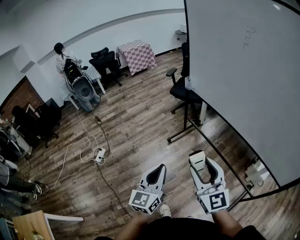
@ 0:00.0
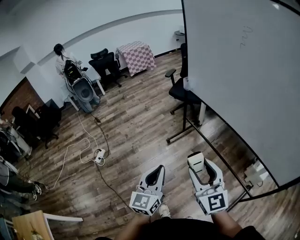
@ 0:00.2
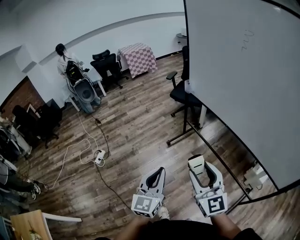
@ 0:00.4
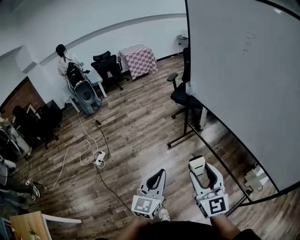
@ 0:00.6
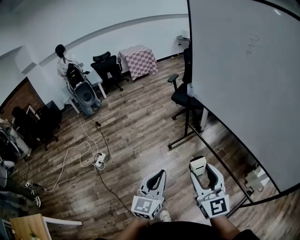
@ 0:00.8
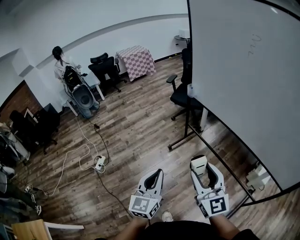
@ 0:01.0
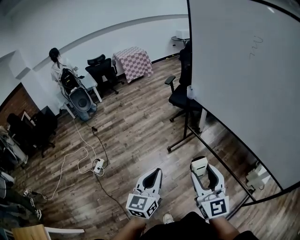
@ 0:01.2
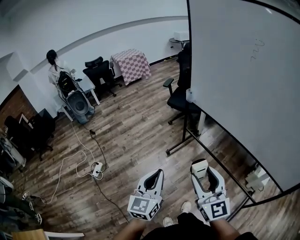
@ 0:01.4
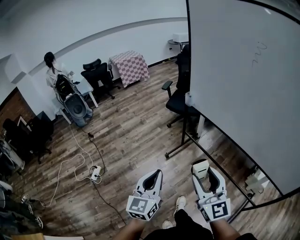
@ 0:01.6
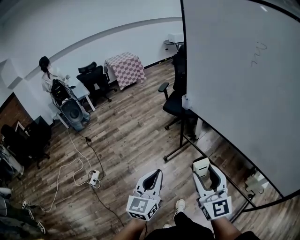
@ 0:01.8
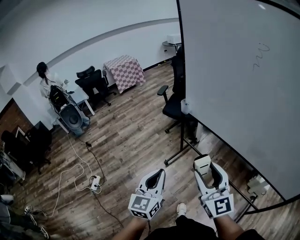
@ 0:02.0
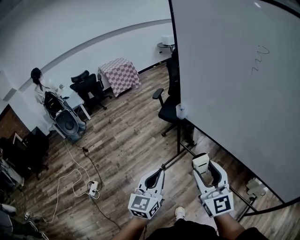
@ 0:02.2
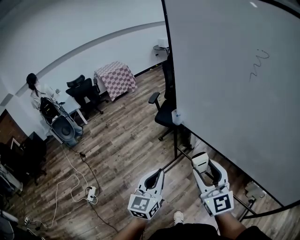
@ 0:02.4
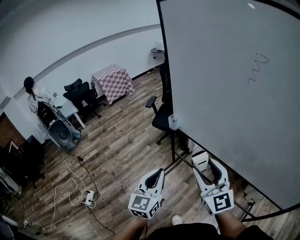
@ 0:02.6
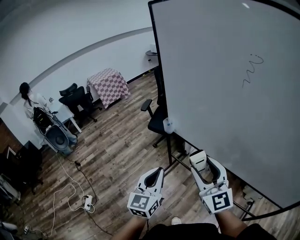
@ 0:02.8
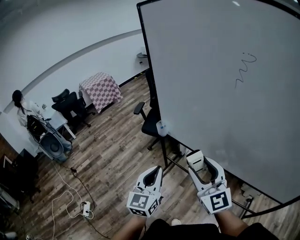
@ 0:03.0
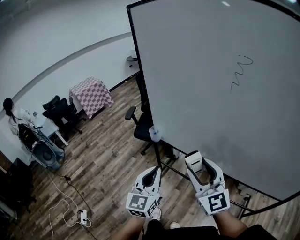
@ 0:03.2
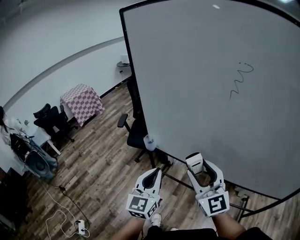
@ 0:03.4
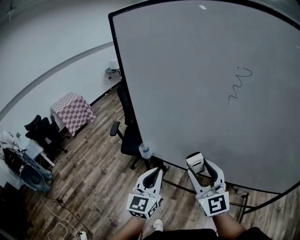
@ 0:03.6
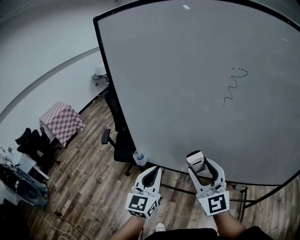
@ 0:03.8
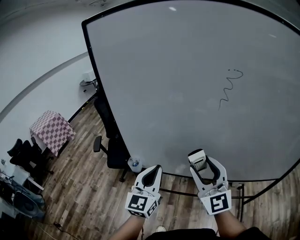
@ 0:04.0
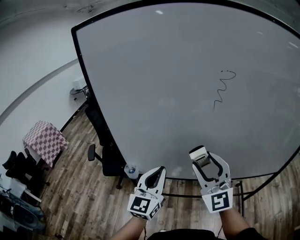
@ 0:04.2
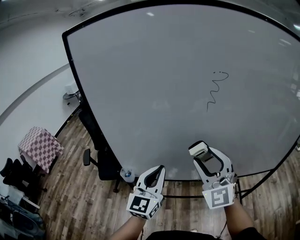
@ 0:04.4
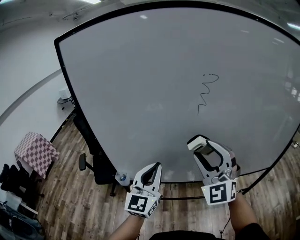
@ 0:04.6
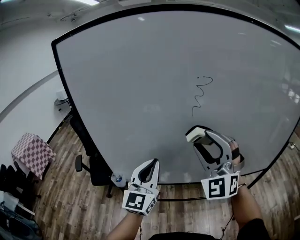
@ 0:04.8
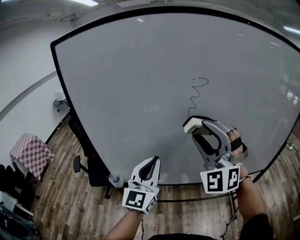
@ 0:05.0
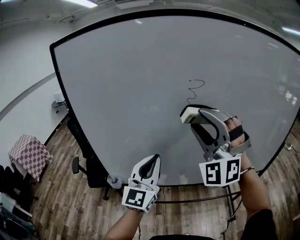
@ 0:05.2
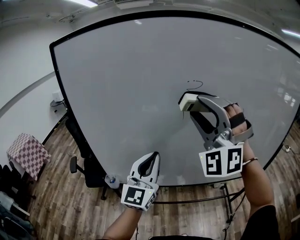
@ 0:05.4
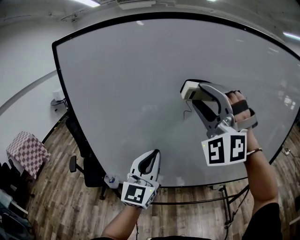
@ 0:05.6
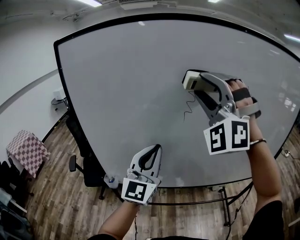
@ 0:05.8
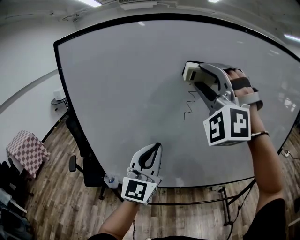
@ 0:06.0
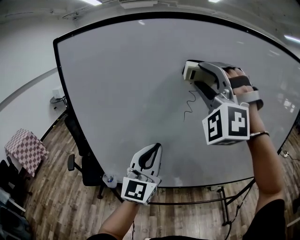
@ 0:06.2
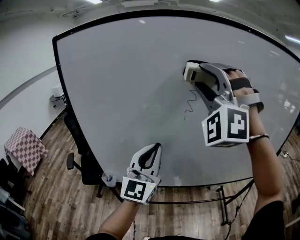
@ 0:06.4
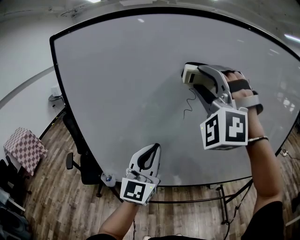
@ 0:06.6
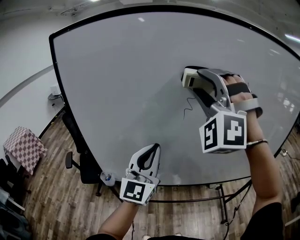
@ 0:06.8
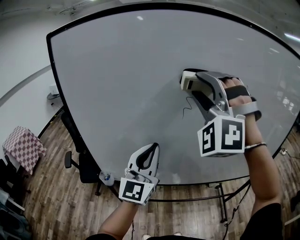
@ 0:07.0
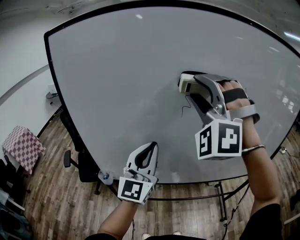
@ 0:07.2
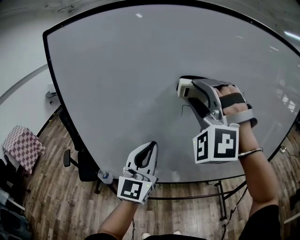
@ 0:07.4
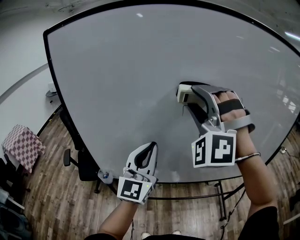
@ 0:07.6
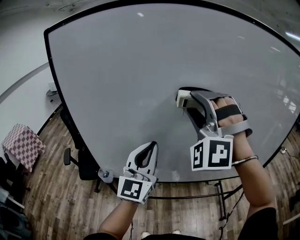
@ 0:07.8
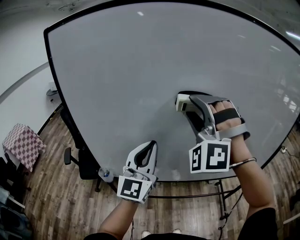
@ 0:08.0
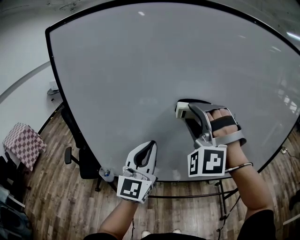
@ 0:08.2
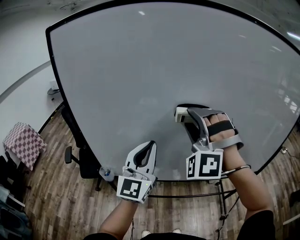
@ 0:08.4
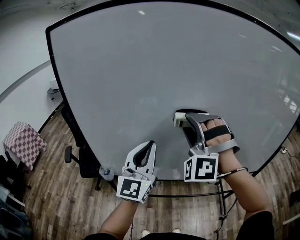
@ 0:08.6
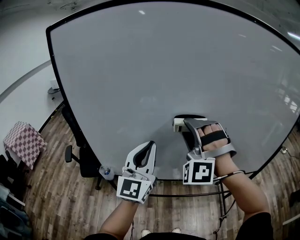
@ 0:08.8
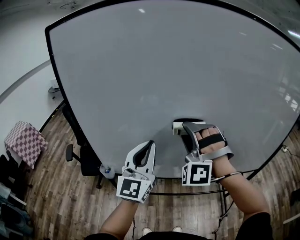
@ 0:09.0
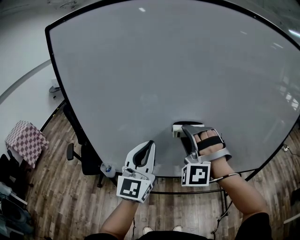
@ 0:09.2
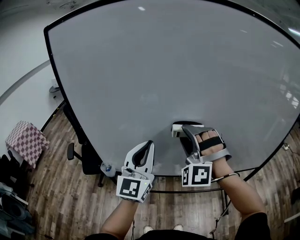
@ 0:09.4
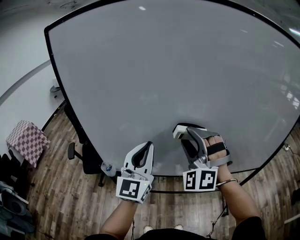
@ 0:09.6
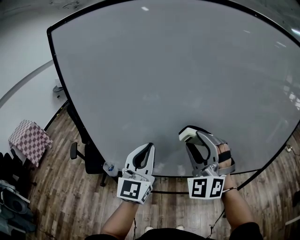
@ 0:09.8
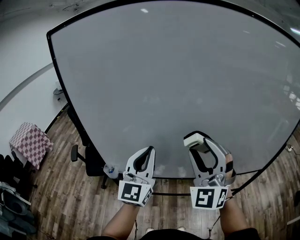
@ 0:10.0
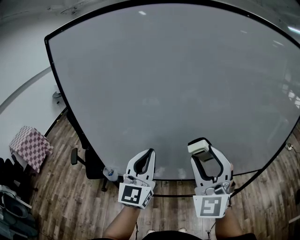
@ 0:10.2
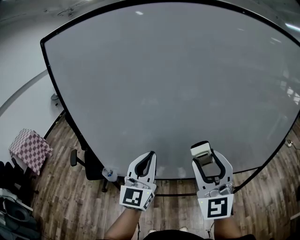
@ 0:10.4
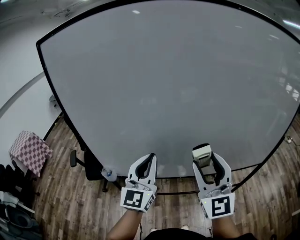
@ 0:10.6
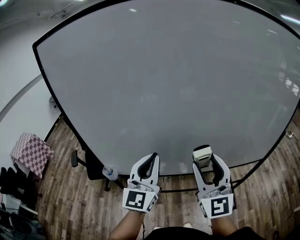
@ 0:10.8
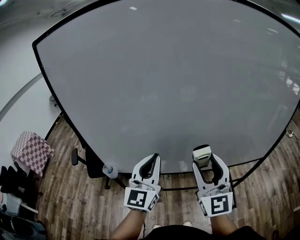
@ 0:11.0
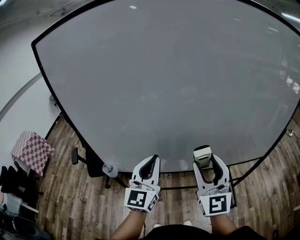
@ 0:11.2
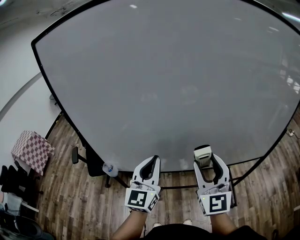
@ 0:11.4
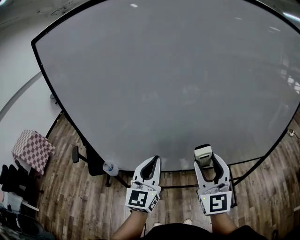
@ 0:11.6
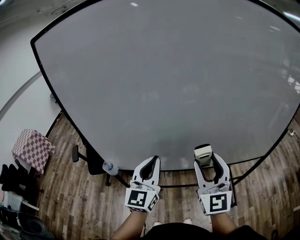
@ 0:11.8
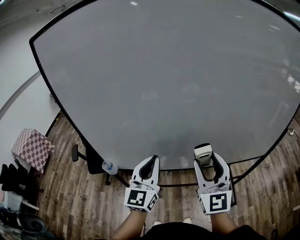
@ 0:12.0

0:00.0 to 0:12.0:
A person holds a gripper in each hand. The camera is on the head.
0:00.0 to 0:01.6: The right gripper travels forward by about 10 cm. The left gripper heads forward and to the left, covering about 15 cm.
0:01.6 to 0:03.0: Both grippers move forward and to the right, some 30 cm.
0:03.0 to 0:04.4: The right gripper ends up some 15 cm from where it was, and changes its angle by roughly 50 degrees, while the left gripper changes place by roughly 20 cm, and turns by about 40 degrees.
0:04.4 to 0:06.0: The right gripper is displaced upward by approximately 25 cm, and rolls counterclockwise, seen from behind, by approximately 50 degrees. Meanwhile the left gripper shifts approximately 15 cm upward and to the right.
0:06.0 to 0:07.6: The right gripper moves downward, roughly 10 cm.
0:07.6 to 0:09.0: The right gripper is displaced downward by some 15 cm.
0:09.0 to 0:10.4: The right gripper shifts roughly 15 cm backward and to the right, and twists about 70 degrees clockwise, seen from behind.
0:10.4 to 0:12.0: The two grippers go about 5 cm downward.

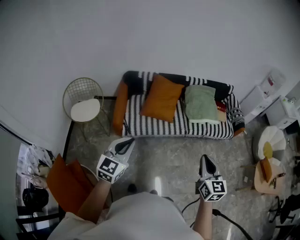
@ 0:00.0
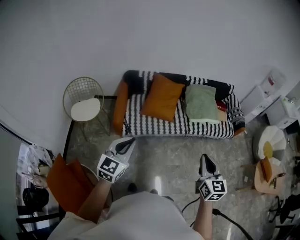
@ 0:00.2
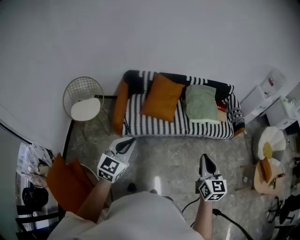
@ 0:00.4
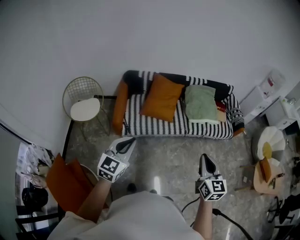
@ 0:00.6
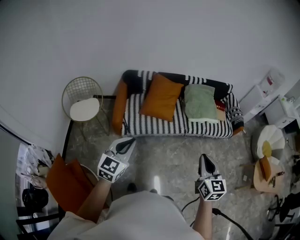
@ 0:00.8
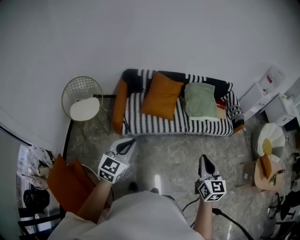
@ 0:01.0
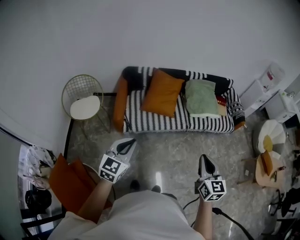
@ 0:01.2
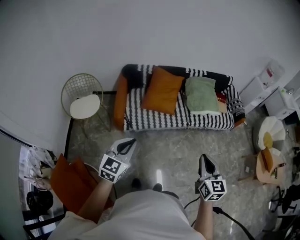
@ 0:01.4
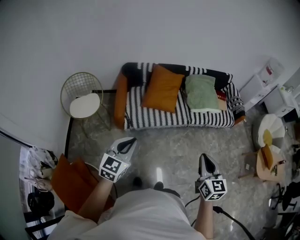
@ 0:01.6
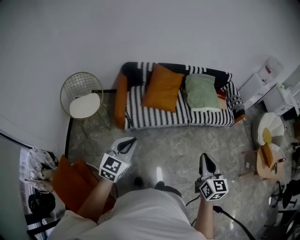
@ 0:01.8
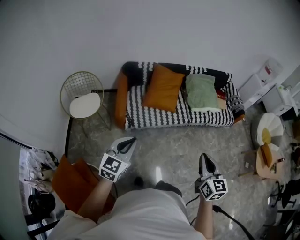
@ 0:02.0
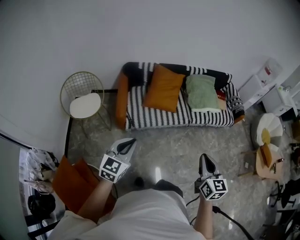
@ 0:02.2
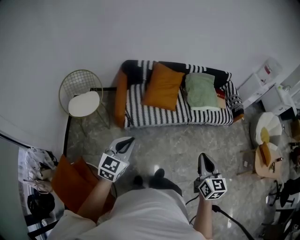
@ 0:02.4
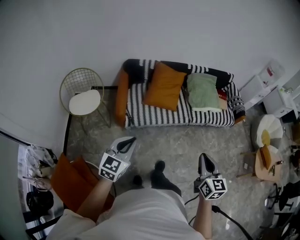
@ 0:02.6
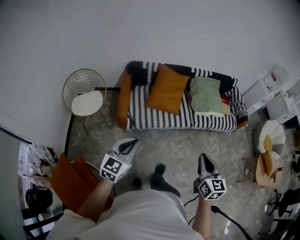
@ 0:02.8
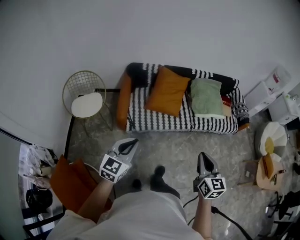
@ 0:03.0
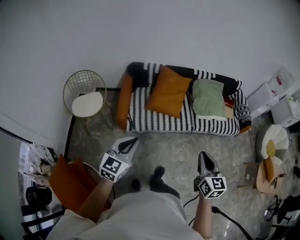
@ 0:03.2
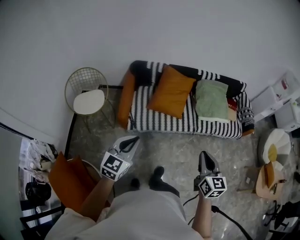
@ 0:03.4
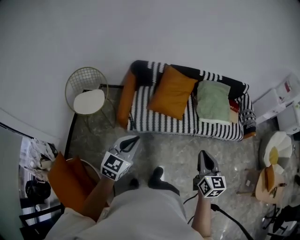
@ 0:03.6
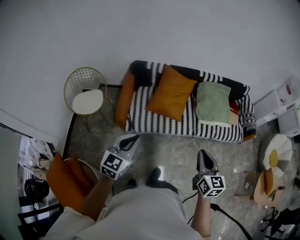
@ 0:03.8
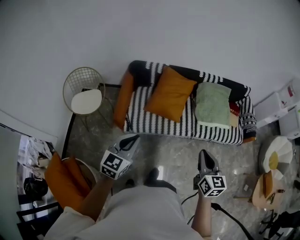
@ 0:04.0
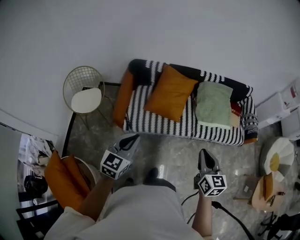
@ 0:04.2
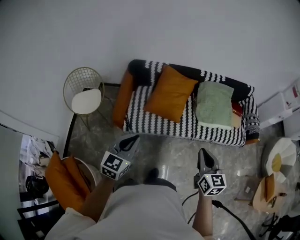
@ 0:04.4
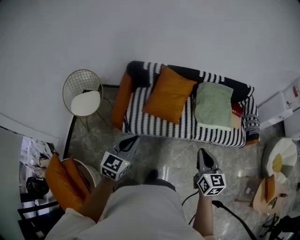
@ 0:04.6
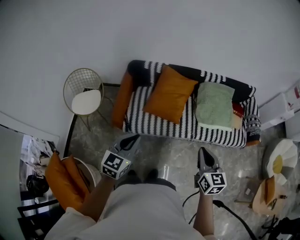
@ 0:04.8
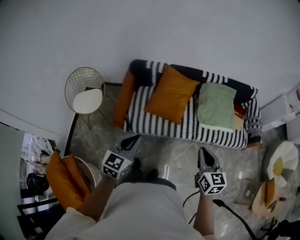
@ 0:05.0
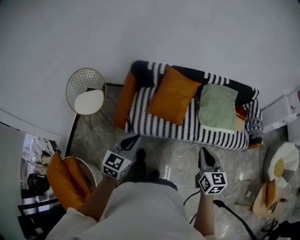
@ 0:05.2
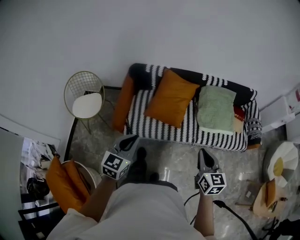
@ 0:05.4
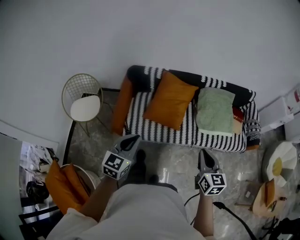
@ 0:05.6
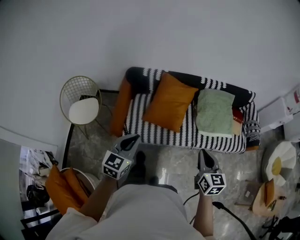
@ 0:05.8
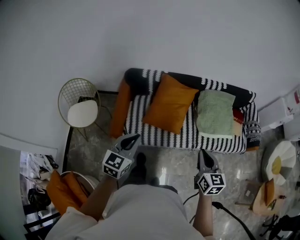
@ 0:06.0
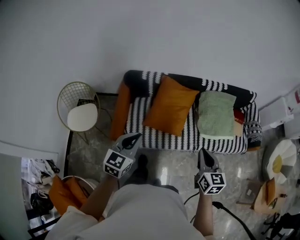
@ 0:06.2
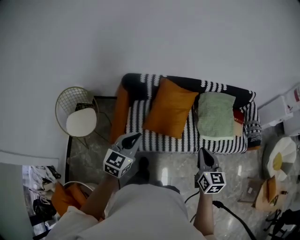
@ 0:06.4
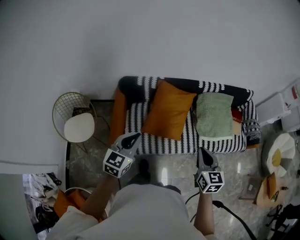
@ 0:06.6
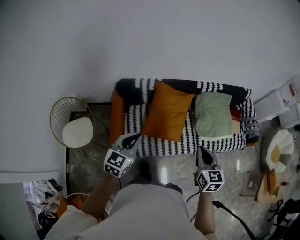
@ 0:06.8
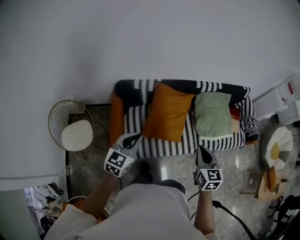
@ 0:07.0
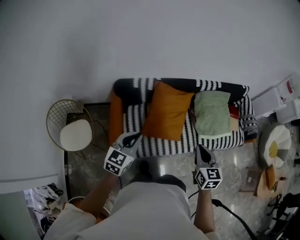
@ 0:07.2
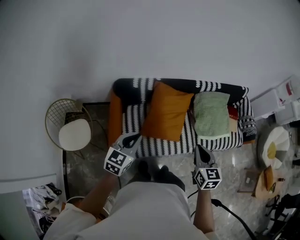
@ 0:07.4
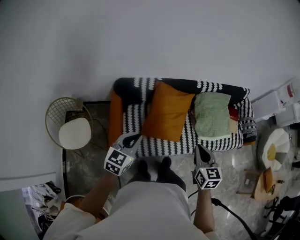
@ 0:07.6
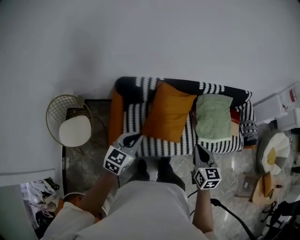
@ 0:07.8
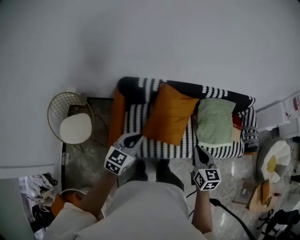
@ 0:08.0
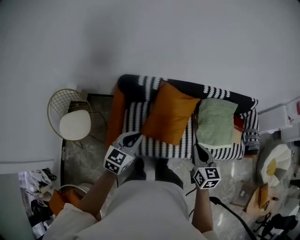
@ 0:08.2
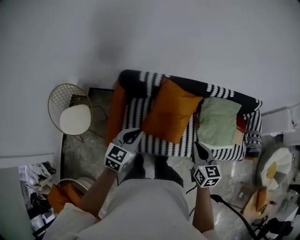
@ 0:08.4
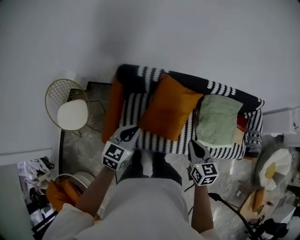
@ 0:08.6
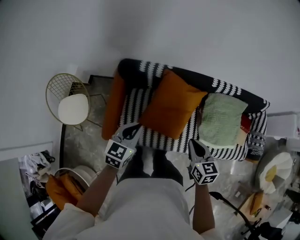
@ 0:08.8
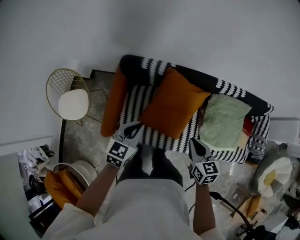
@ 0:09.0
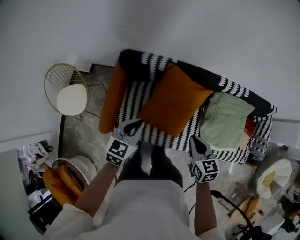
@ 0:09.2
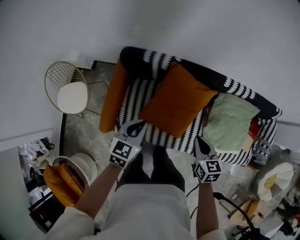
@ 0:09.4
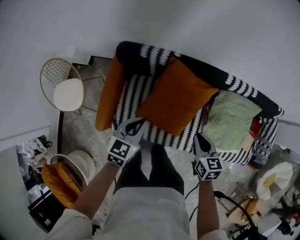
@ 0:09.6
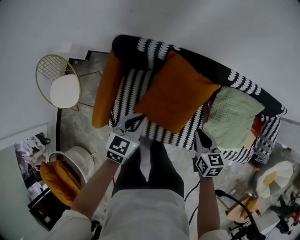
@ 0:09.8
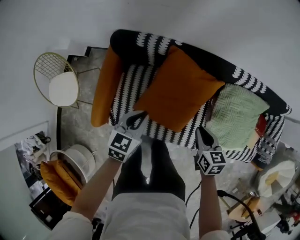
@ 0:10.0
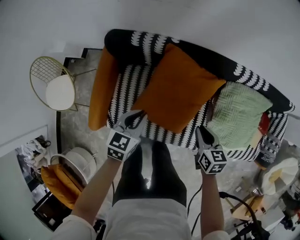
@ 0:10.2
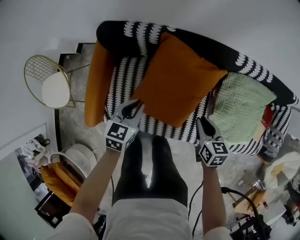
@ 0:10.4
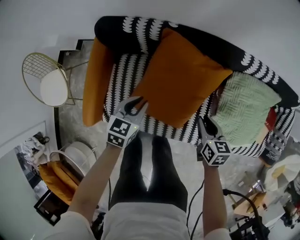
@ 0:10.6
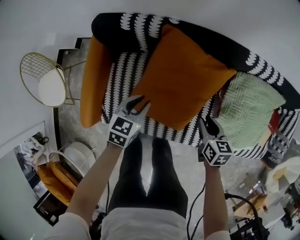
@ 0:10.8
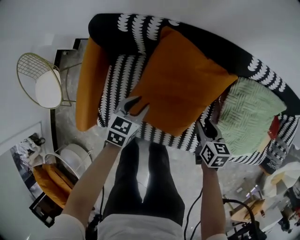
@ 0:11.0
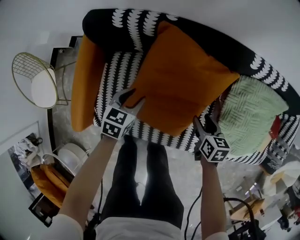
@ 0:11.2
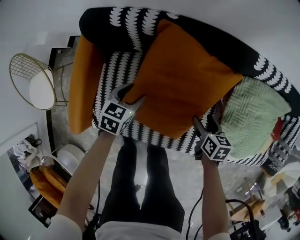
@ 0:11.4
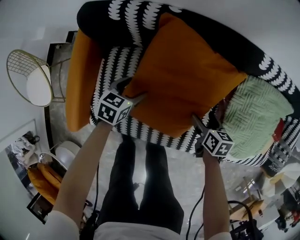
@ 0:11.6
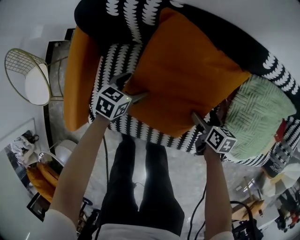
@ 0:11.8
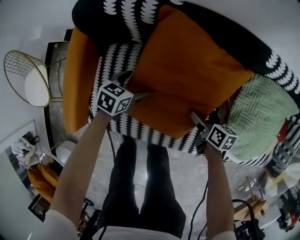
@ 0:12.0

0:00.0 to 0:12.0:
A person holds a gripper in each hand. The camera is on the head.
0:00.0 to 0:01.6: Both grippers travel together to the left, approximately 5 cm.
0:01.6 to 0:03.0: The left gripper changes place by some 5 cm, while the right gripper moves forward, roughly 5 cm.
0:03.0 to 0:04.4: The two grippers go approximately 25 cm forward and to the right.
0:04.4 to 0:06.0: The grippers both shift forward by roughly 15 cm.
0:06.0 to 0:07.6: Both grippers move forward and to the left, some 20 cm.
0:07.6 to 0:09.0: The right gripper shifts some 20 cm forward and downward, and turns by approximately 20 degrees, while the left gripper goes approximately 20 cm forward, downward and to the right.
0:09.0 to 0:10.4: Both grippers move downward and forward, some 30 cm.
0:10.4 to 0:12.0: Both grippers travel together downward, roughly 30 cm. The left gripper opens. Meanwhile the right gripper turns by some 30 degrees, and opens its fingers.
